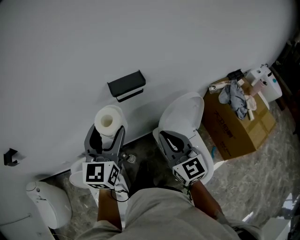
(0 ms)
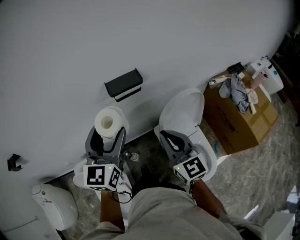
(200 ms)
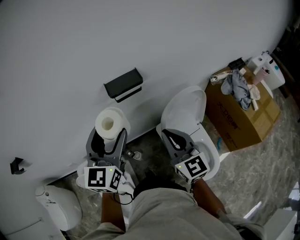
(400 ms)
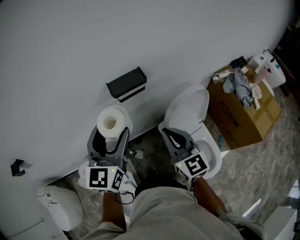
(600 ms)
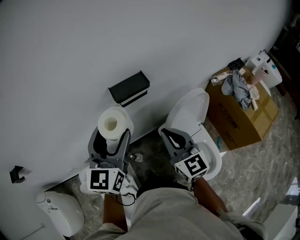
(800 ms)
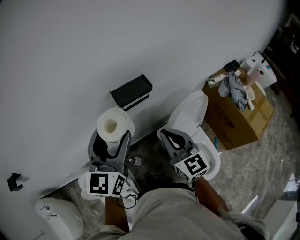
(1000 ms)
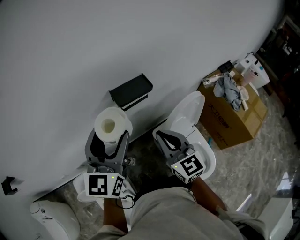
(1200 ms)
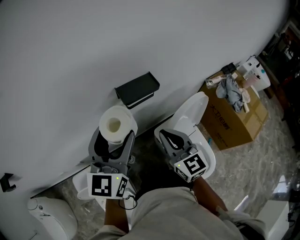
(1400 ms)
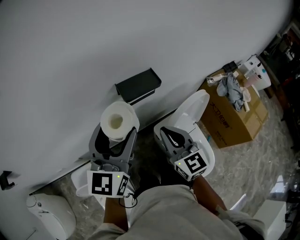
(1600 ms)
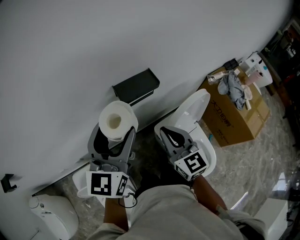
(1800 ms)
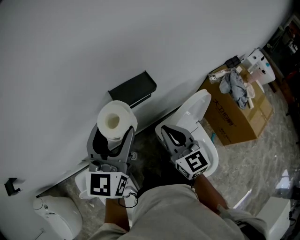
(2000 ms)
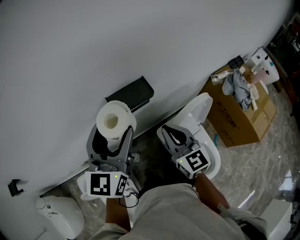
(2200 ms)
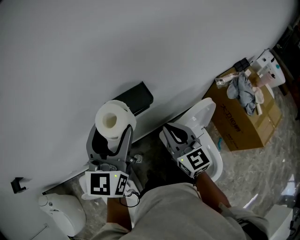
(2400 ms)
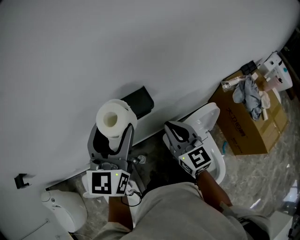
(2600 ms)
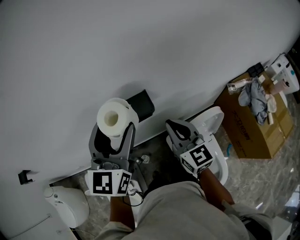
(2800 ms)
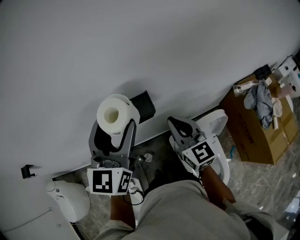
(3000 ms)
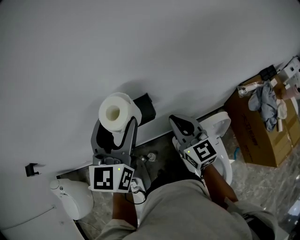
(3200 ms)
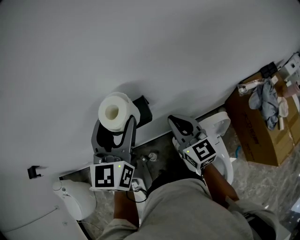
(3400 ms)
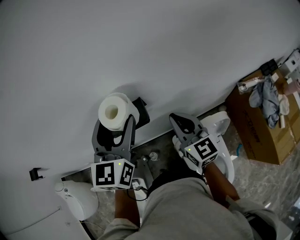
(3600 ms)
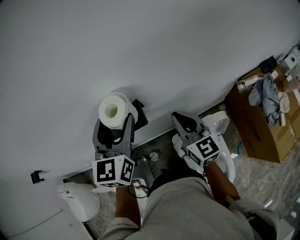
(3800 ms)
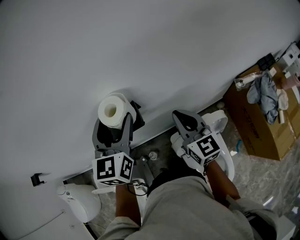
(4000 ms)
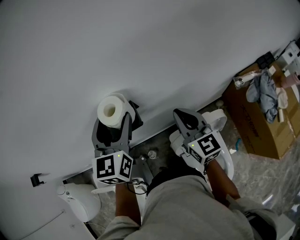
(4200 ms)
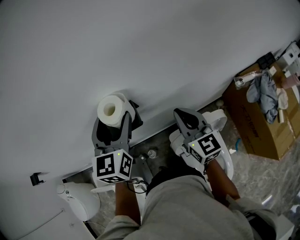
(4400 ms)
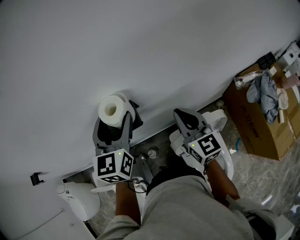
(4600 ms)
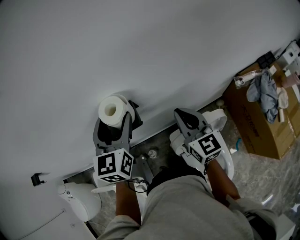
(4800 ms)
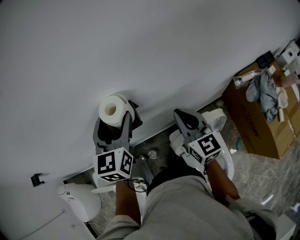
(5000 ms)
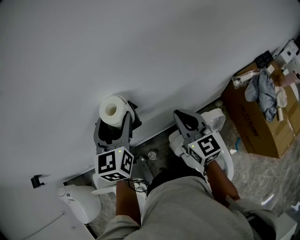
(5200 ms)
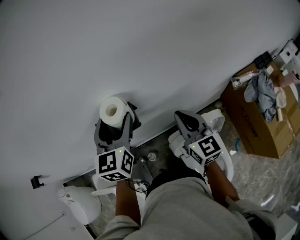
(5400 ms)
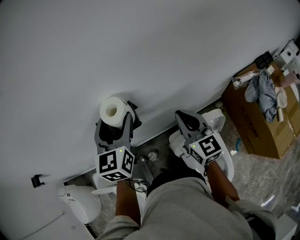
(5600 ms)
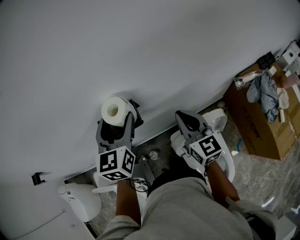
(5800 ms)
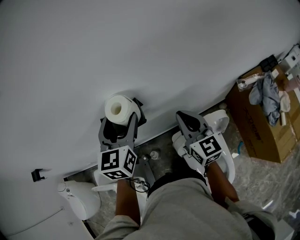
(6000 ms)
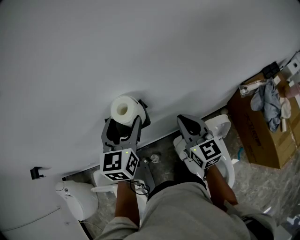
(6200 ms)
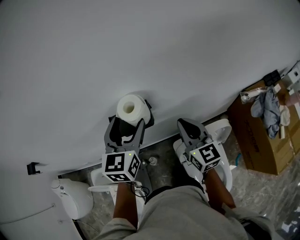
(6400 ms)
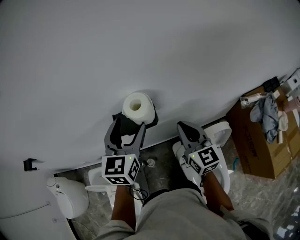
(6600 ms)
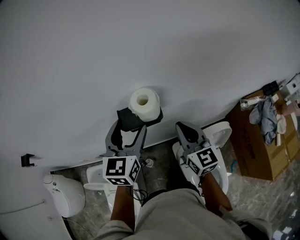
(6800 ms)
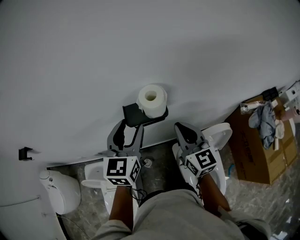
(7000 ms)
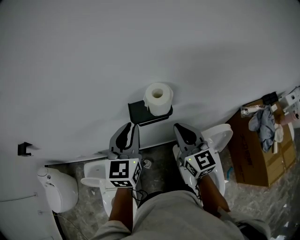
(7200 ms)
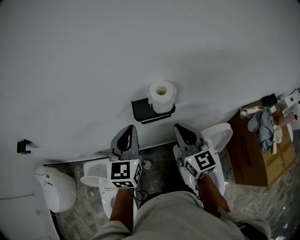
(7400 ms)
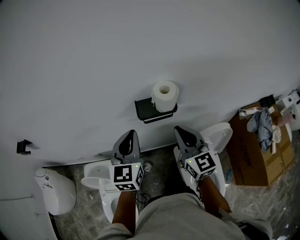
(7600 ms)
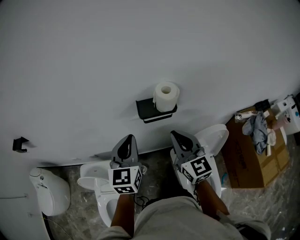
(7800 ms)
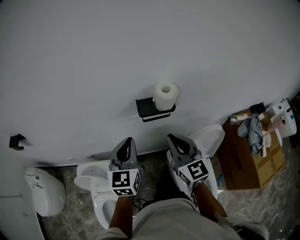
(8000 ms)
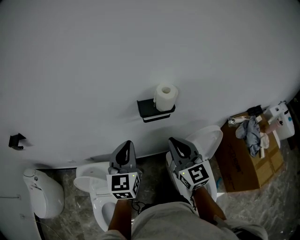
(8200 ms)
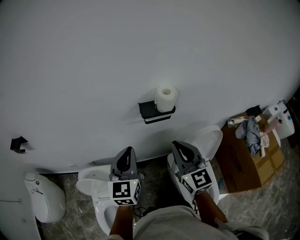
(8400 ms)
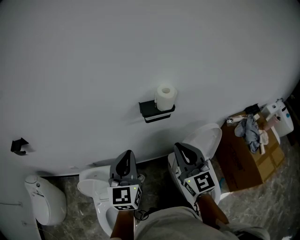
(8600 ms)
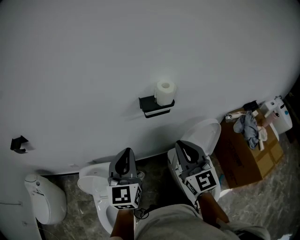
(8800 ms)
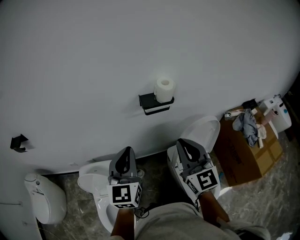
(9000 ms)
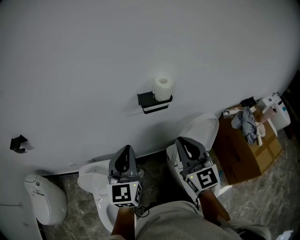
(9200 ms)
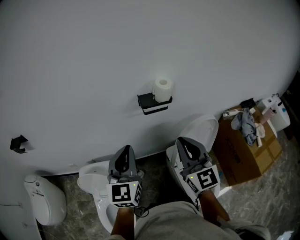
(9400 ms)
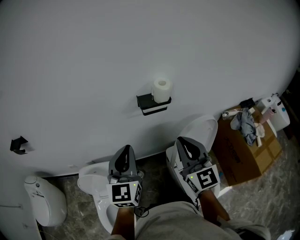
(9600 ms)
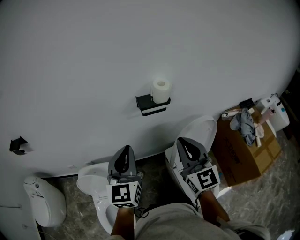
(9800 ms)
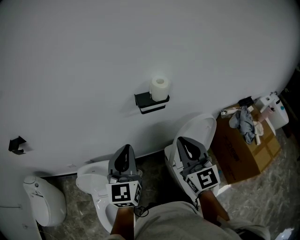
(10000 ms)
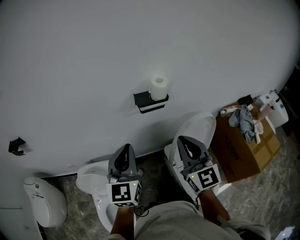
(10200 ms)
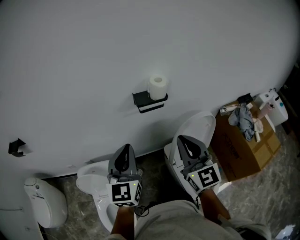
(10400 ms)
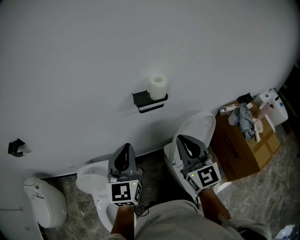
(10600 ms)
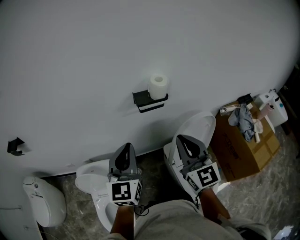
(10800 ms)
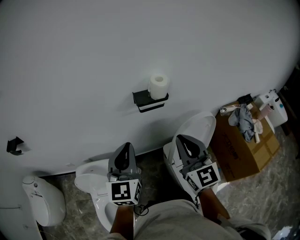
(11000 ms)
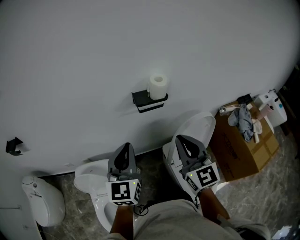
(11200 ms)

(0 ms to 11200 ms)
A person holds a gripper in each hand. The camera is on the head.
0 ms - 1600 ms: Both grippers travel together forward and to the left, some 10 cm.
1600 ms - 3200 ms: The two grippers go roughly 20 cm forward and to the right.
3200 ms - 4800 ms: The right gripper moves to the right, about 10 cm. Meanwhile the left gripper is displaced downward and forward by about 10 cm.
4800 ms - 6400 ms: There are only small adjustments of the grippers.
6400 ms - 8000 ms: The right gripper travels to the left, backward and upward by some 20 cm; the left gripper moves to the left and backward, roughly 20 cm, and closes its fingers.
8000 ms - 9600 ms: The right gripper shifts about 15 cm backward and upward. The left gripper moves backward, roughly 10 cm.
9600 ms - 11200 ms: The grippers make only small movements.

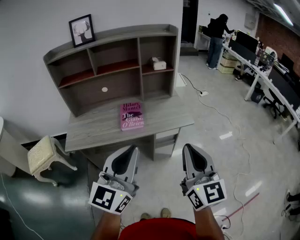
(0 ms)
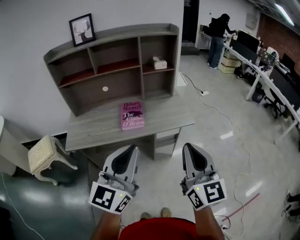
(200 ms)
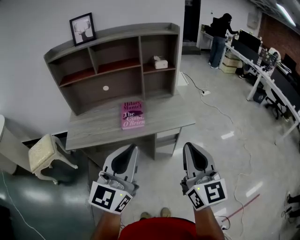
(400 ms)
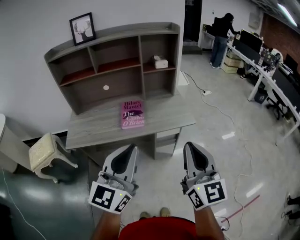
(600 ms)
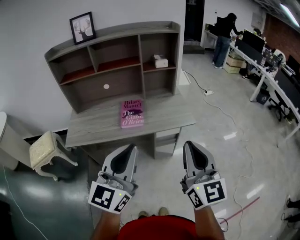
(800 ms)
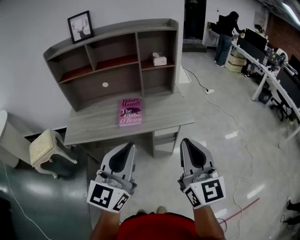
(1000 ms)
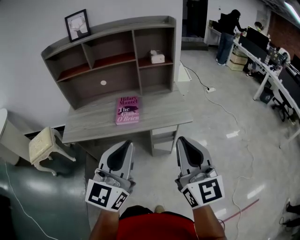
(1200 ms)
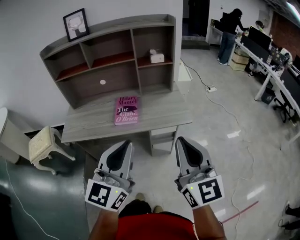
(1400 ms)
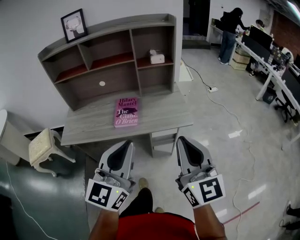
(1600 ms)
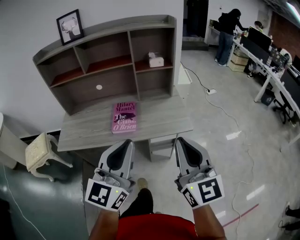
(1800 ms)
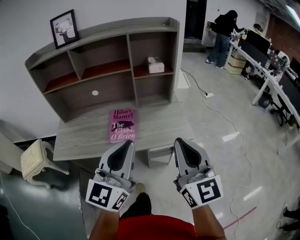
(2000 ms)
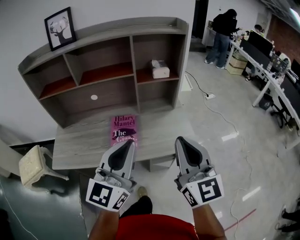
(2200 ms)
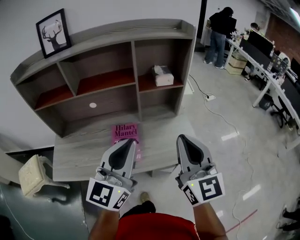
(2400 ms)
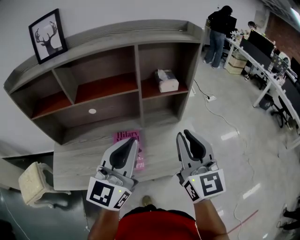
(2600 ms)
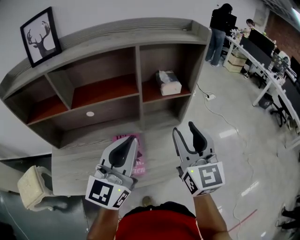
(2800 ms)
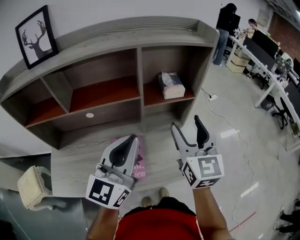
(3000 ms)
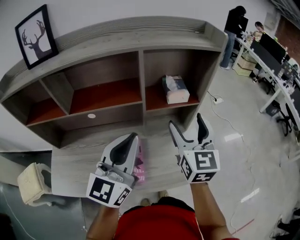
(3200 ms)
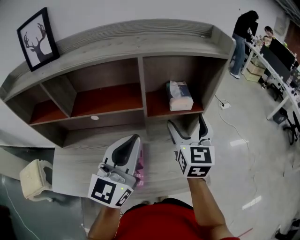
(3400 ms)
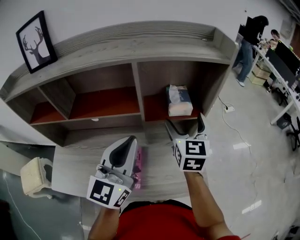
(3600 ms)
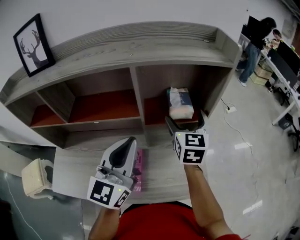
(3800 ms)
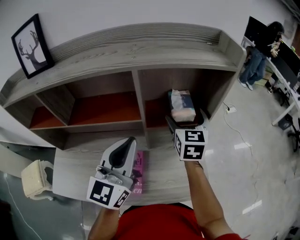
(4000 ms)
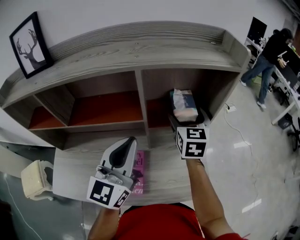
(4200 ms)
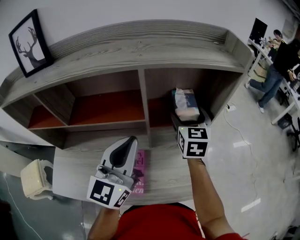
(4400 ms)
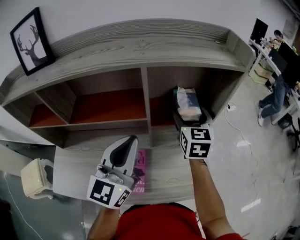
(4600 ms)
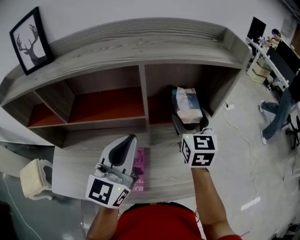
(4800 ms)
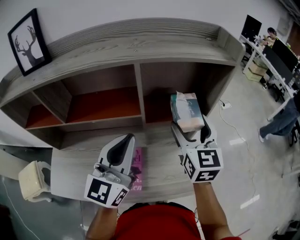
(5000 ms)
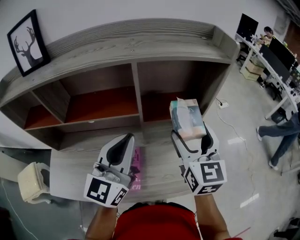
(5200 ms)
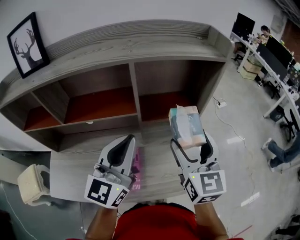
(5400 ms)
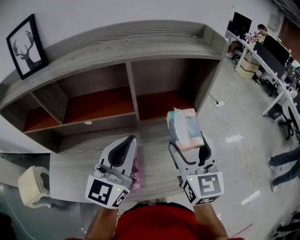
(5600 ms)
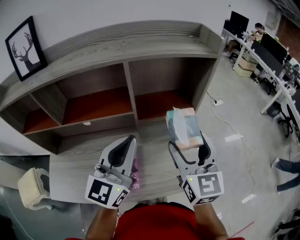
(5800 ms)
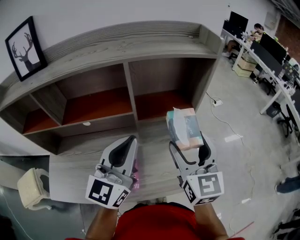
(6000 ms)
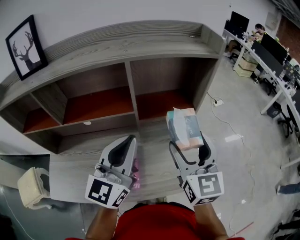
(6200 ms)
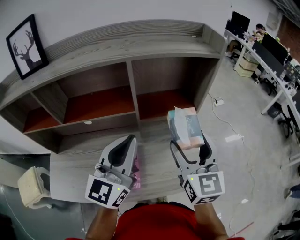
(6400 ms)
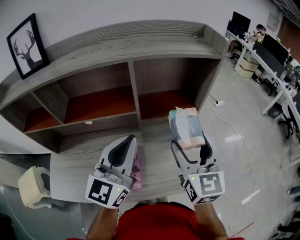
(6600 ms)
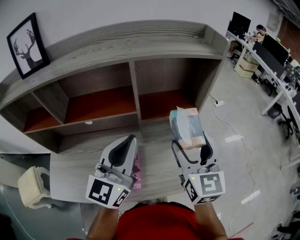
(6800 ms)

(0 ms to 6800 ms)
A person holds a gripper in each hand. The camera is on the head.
0 ms - 1400 ms: Both grippers move to the right, about 5 cm.
1400 ms - 2800 ms: The two grippers go about 40 cm forward. The right gripper opens up.
2800 ms - 4000 ms: The right gripper is displaced forward by about 25 cm, and opens up. The left gripper travels forward by approximately 15 cm.
4000 ms - 5400 ms: The right gripper is displaced backward and upward by about 15 cm.
5400 ms - 6800 ms: There are only small adjustments of the grippers.

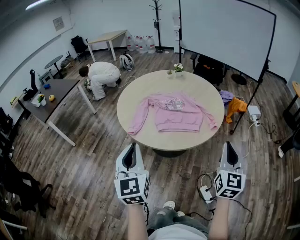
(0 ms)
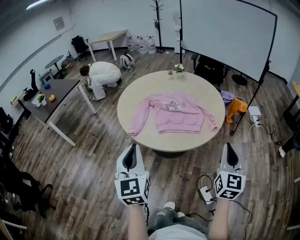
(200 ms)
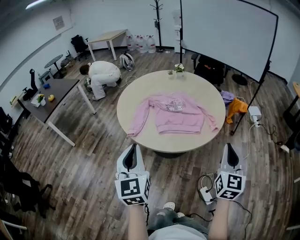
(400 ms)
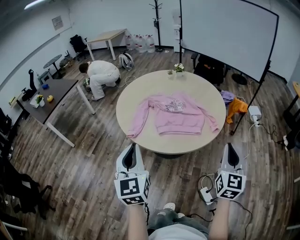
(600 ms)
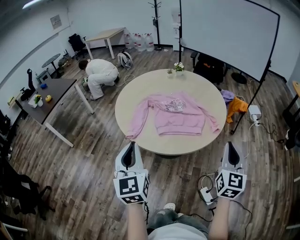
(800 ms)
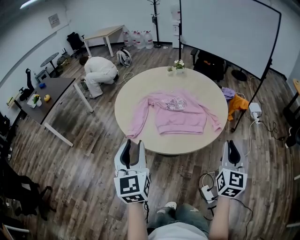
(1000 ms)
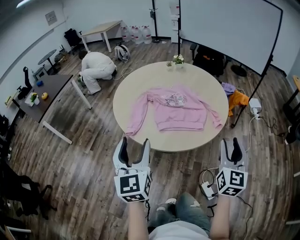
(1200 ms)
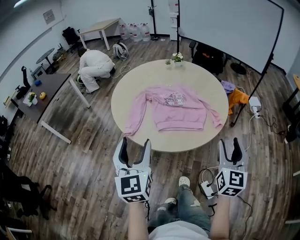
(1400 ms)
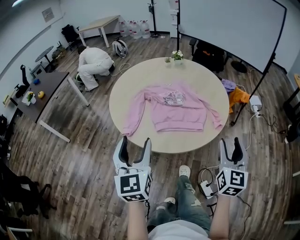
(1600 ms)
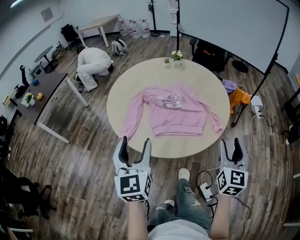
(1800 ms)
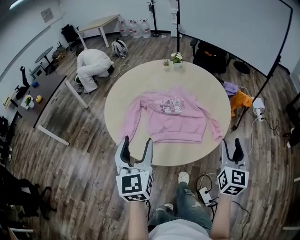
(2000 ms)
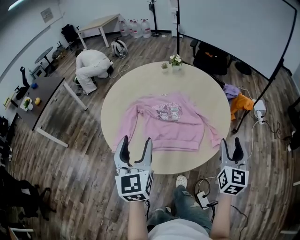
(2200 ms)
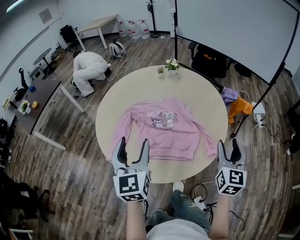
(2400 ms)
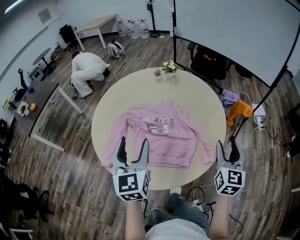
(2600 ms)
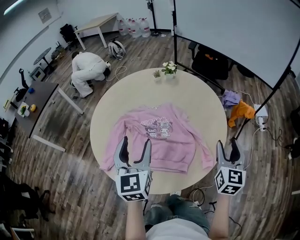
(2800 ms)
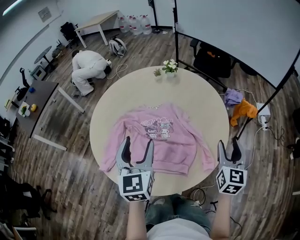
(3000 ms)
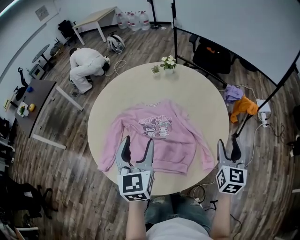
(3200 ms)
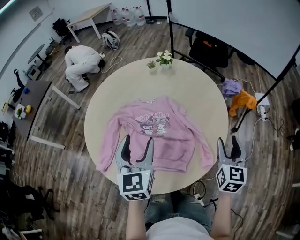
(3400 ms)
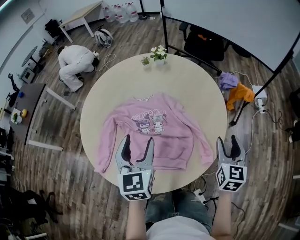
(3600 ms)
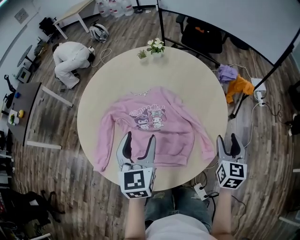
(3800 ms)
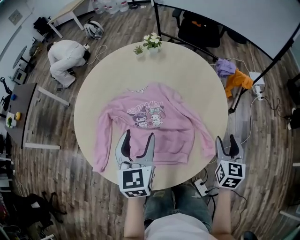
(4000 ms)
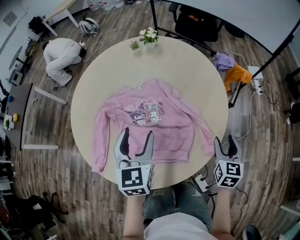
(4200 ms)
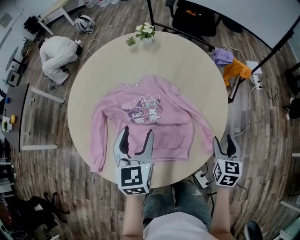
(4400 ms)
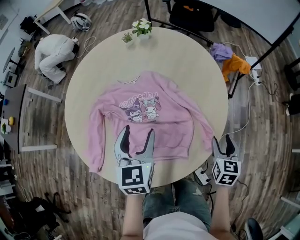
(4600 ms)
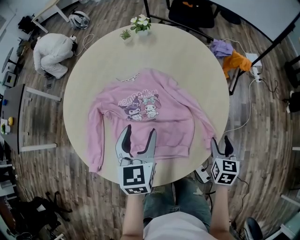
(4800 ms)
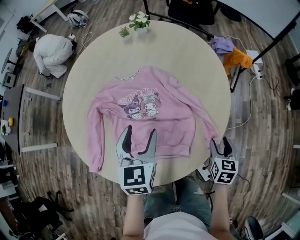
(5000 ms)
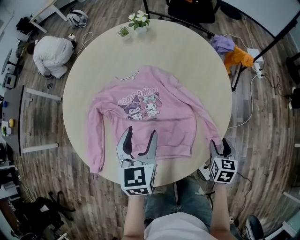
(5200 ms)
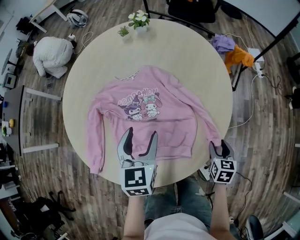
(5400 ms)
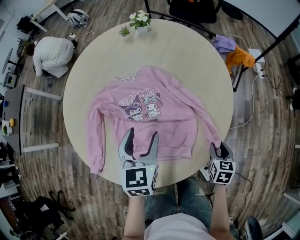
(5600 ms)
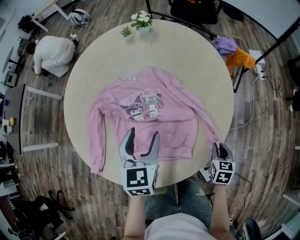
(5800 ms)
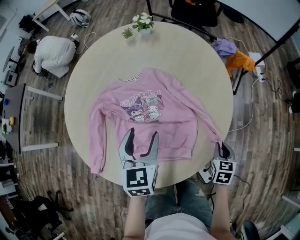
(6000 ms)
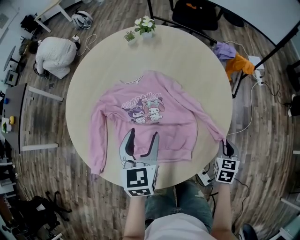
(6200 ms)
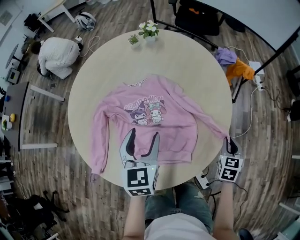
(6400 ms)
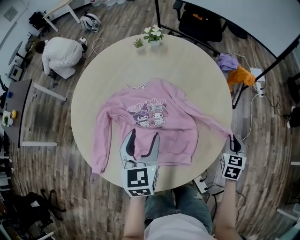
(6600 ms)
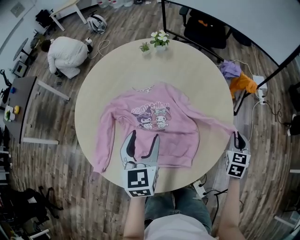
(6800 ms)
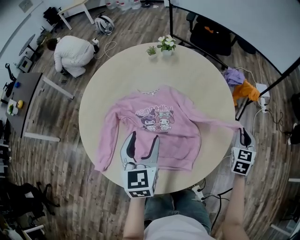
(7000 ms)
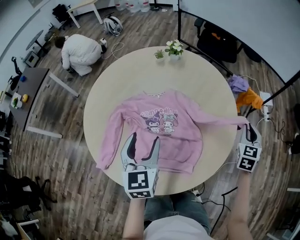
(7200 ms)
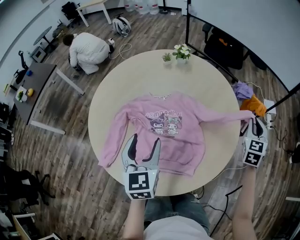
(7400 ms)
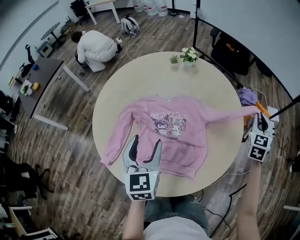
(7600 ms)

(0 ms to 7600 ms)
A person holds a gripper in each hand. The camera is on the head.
0 ms - 1600 ms: The grippers both shift forward by roughly 10 cm. The left gripper opens, while the right gripper opens its fingers.
1600 ms - 3000 ms: The two grippers go roughly 30 cm forward and to the right.
3000 ms - 4600 ms: The right gripper moves downward, some 15 cm, and turns by approximately 30 degrees; the left gripper moves downward and forward, some 15 cm, and swivels some 20 degrees.
4600 ms - 6000 ms: The right gripper heads downward, covering roughly 10 cm, and closes its fingers.
6000 ms - 7600 ms: The left gripper moves upward and to the left, about 10 cm, while the right gripper moves forward and upward, approximately 35 cm, and angles its fingers upward, by some 30 degrees.
